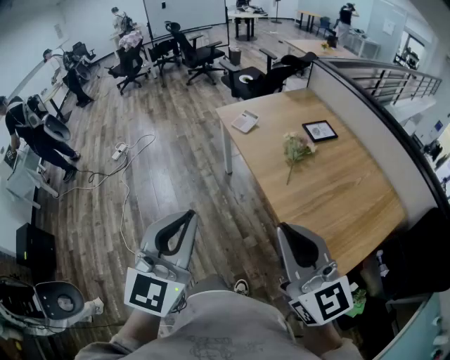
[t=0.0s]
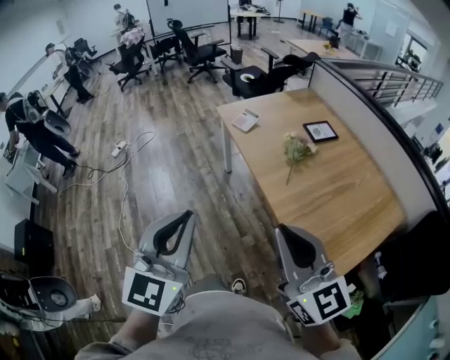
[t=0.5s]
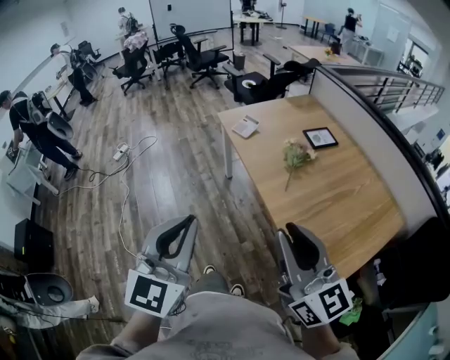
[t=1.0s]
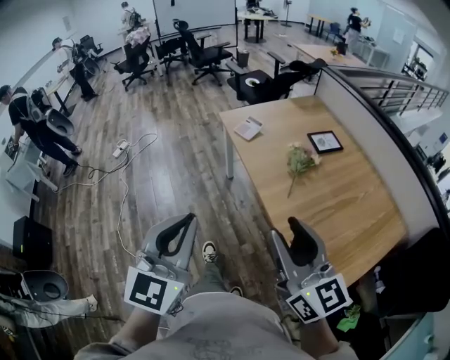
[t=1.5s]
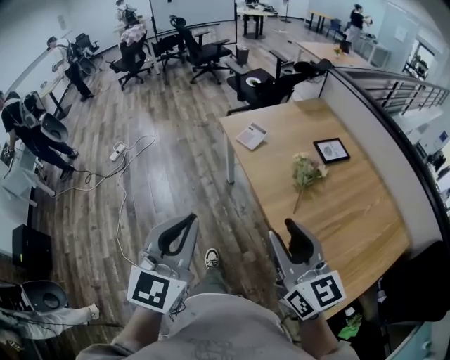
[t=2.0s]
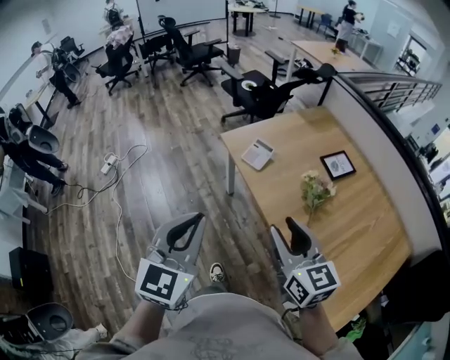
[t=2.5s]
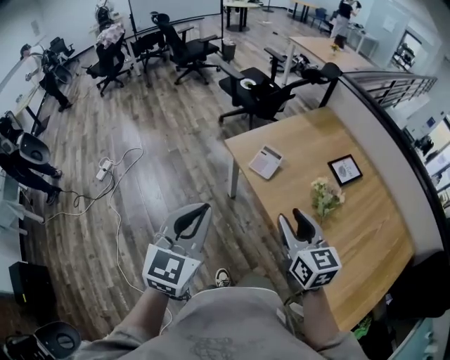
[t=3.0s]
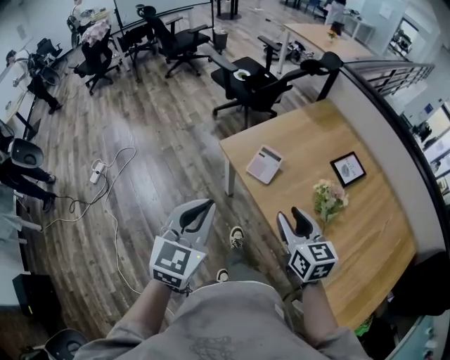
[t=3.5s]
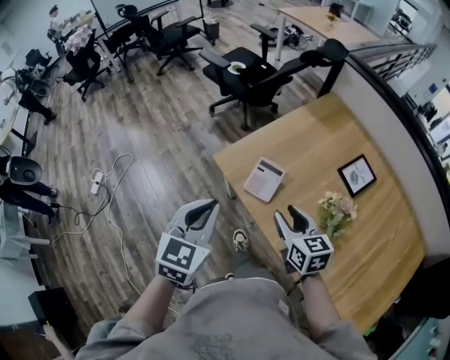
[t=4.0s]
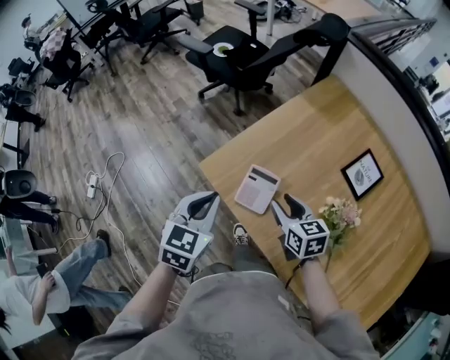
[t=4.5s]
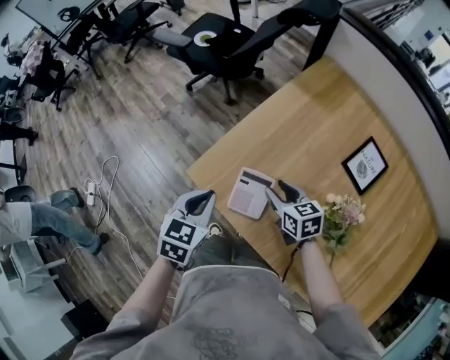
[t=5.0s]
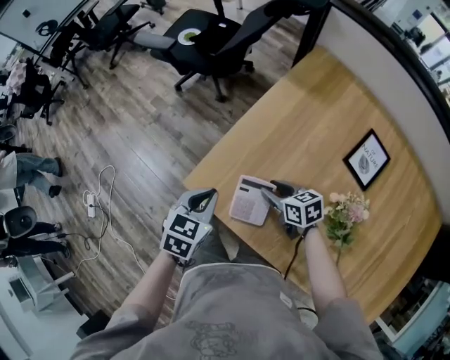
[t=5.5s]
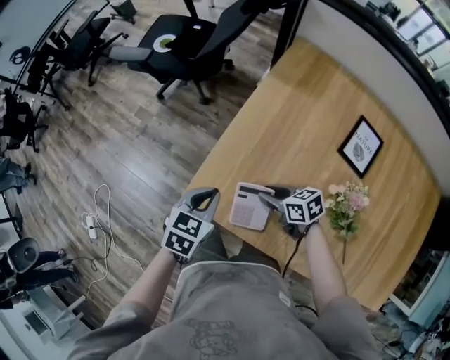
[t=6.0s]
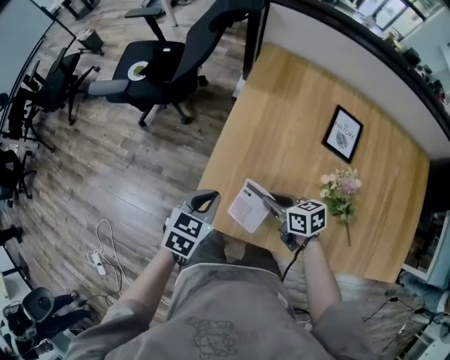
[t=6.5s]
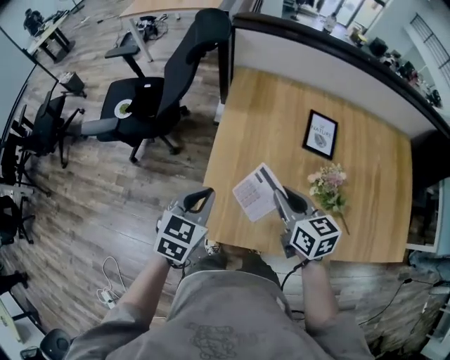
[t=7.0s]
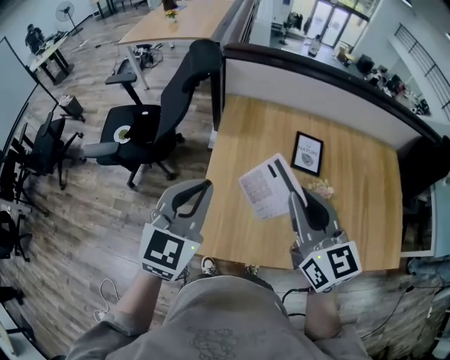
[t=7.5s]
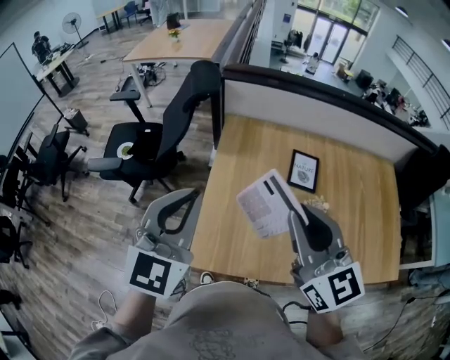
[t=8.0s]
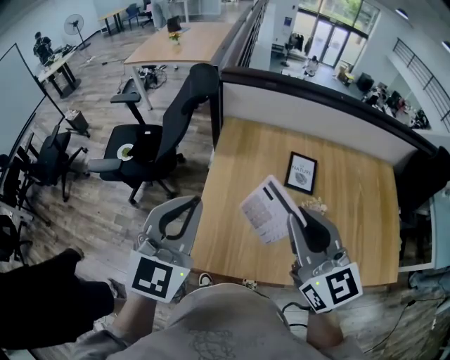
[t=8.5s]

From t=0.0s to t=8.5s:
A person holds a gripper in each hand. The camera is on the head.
From t=0.0s to t=2.0s: The grippers both shift forward by about 15 cm. The right gripper opens its fingers.
From t=2.0s to t=4.0s: Both grippers are carried forward, some 50 cm. The left gripper changes its angle by approximately 20 degrees. The right gripper shifts approximately 20 cm downward, and rotates approximately 30 degrees.
From t=4.0s to t=6.5s: Both grippers move forward and downward, some 30 cm. The right gripper swivels roughly 30 degrees, and closes up. The left gripper changes its angle by roughly 50 degrees.
From t=6.5s to t=8.5s: Both grippers travel together upward, some 35 cm. The left gripper tips its fingers upward by roughly 40 degrees; the right gripper angles its fingers upward, by about 30 degrees.

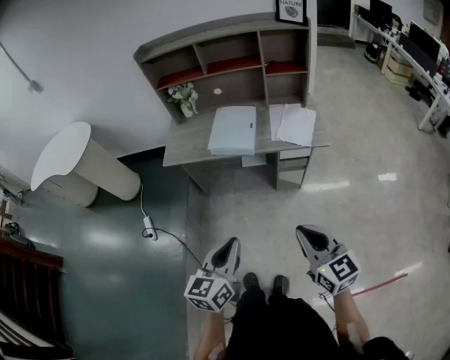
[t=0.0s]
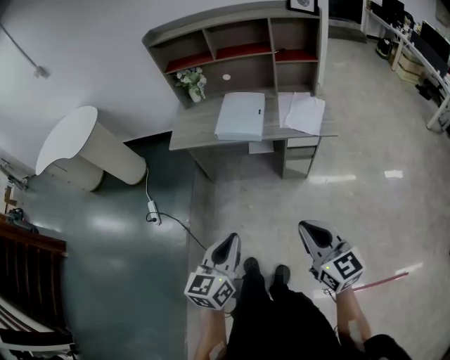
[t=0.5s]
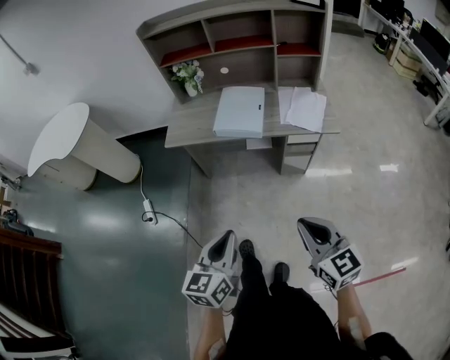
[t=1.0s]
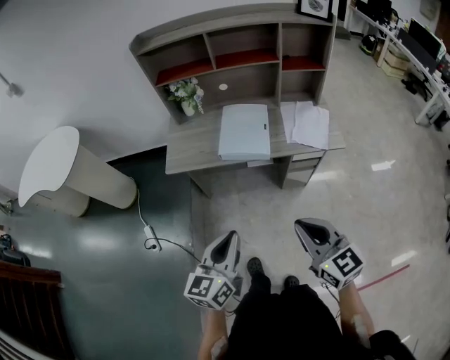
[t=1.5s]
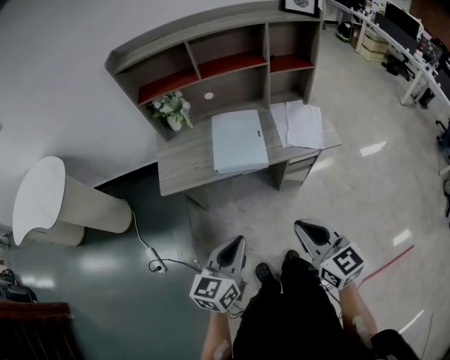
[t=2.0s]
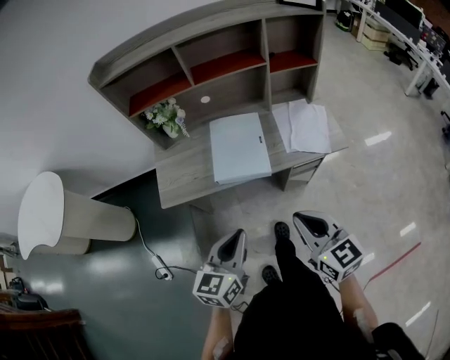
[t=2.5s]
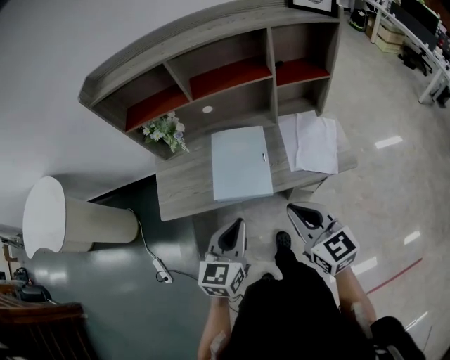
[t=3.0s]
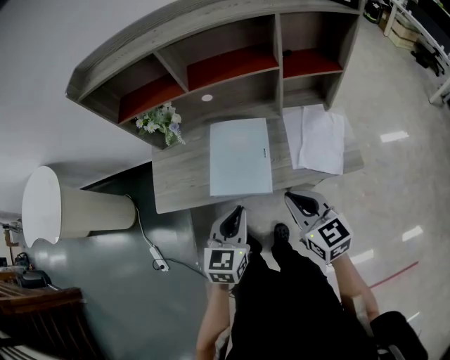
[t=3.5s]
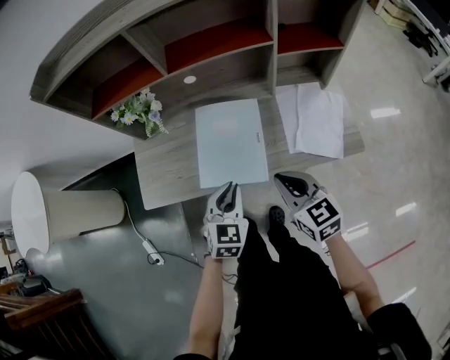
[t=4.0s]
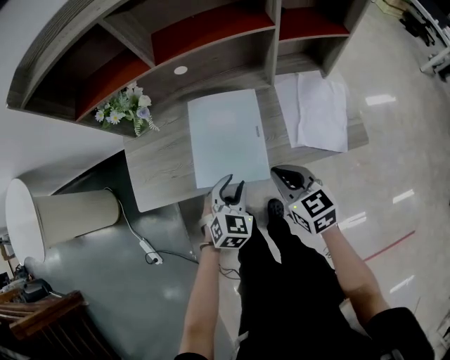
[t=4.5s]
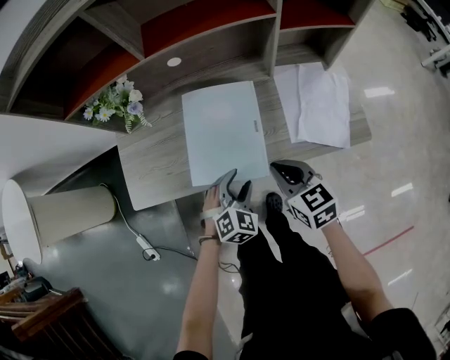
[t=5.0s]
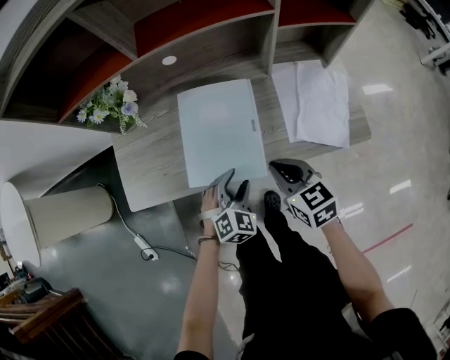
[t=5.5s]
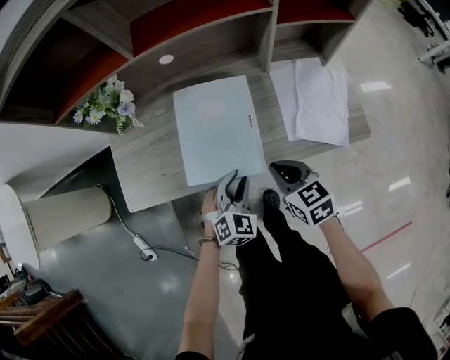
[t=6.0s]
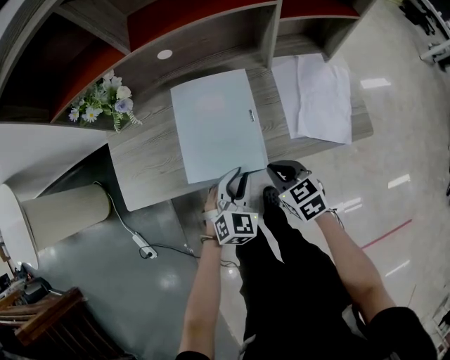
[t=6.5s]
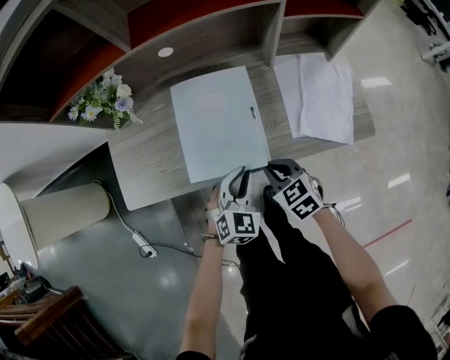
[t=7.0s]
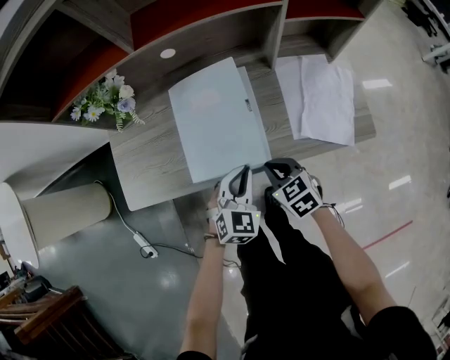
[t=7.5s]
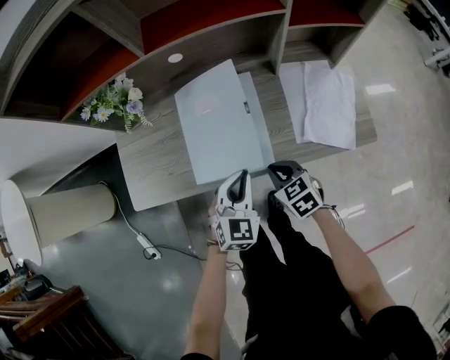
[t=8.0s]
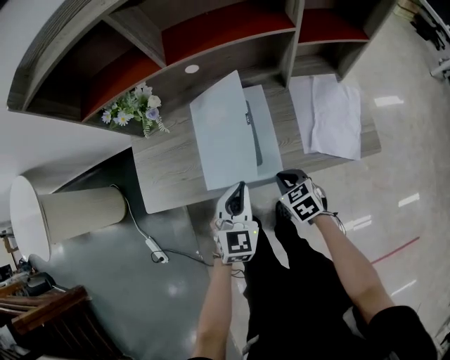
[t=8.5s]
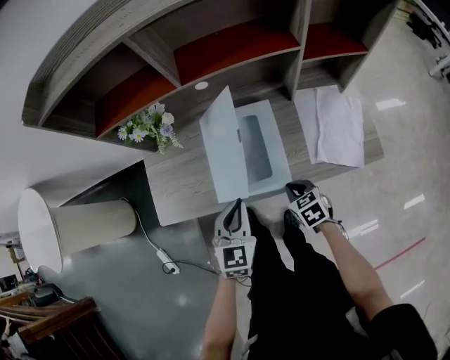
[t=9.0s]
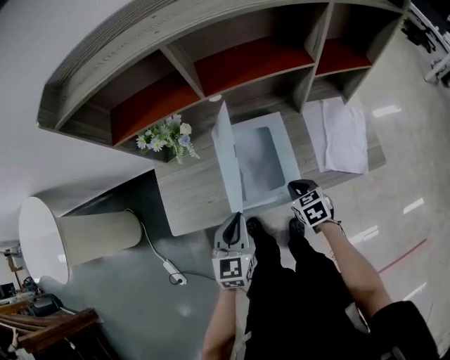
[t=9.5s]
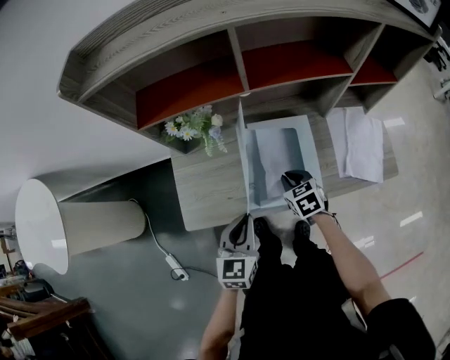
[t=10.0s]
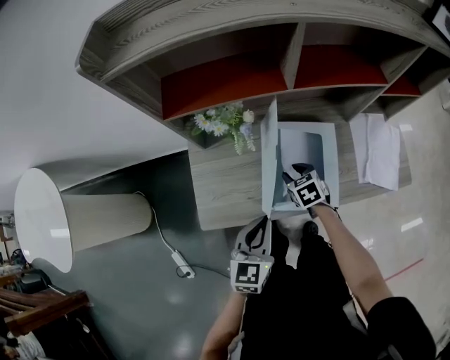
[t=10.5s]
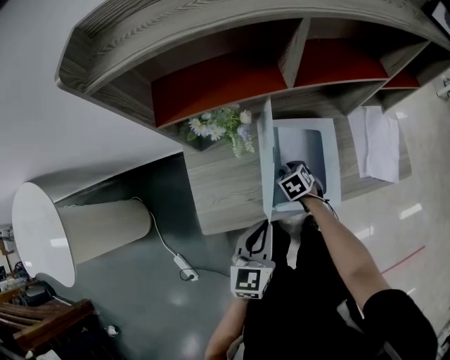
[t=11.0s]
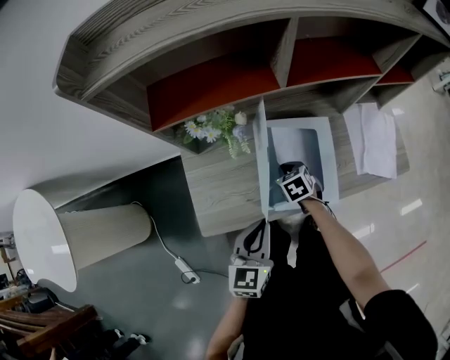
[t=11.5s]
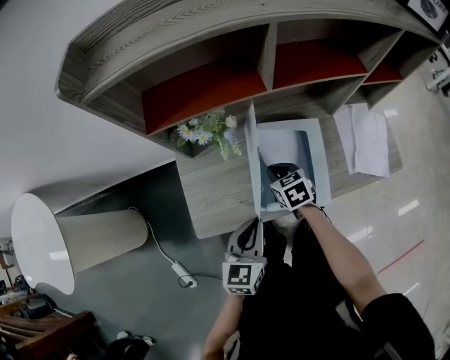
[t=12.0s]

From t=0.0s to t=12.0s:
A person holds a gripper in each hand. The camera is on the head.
From t=0.0s to t=2.0s: Both grippers move forward and to the left, some 20 cm.
From t=2.0s to t=4.0s: Both grippers travel together forward, approximately 30 cm. The left gripper changes its angle by roughly 30 degrees.
From t=4.0s to t=6.0s: Both grippers move downward, roughly 10 cm. The left gripper swivels roughly 20 degrees, and opens up.
From t=6.0s to t=8.0s: The right gripper travels downward by roughly 5 cm; the left gripper shifts by approximately 5 cm, and closes up.
From t=8.0s to t=10.0s: The right gripper goes about 15 cm forward and to the left. Meanwhile the left gripper is displaced to the left and upward by some 20 cm, and turns by some 30 degrees.
From t=10.0s to t=12.0s: The right gripper moves to the left, about 10 cm, reaches approximately 10 cm downward, then returns, and opens, then closes once more.

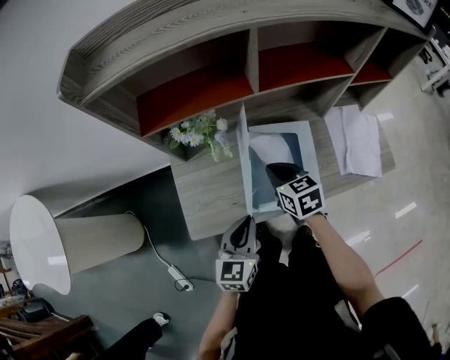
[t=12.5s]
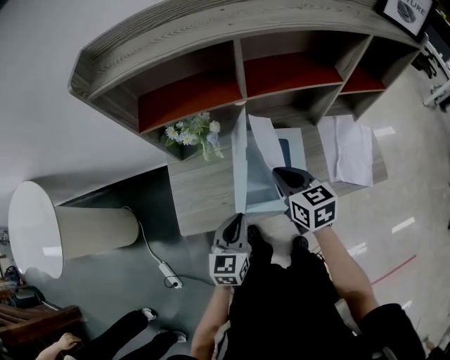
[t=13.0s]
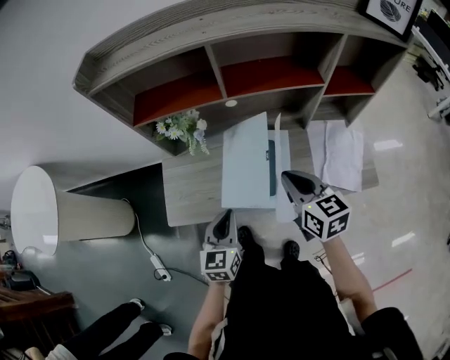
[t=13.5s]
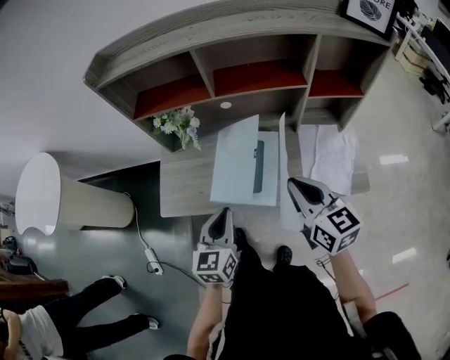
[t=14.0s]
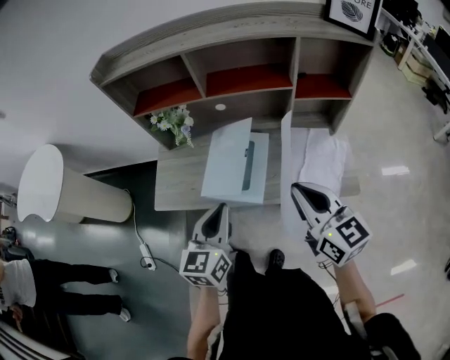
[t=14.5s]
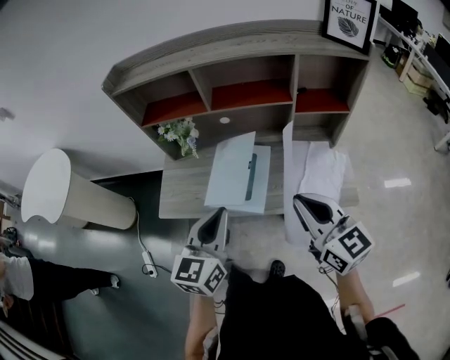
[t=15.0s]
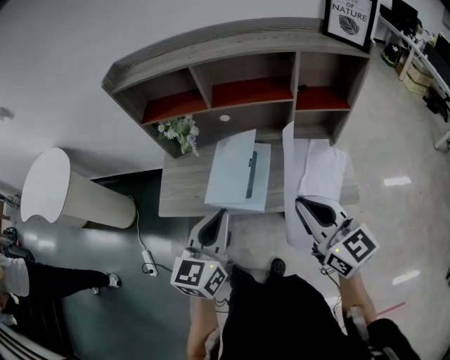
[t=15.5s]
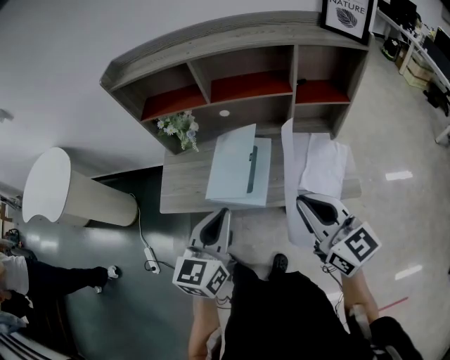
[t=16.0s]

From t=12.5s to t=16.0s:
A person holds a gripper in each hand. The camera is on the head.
From t=12.5s to t=14.5s: The right gripper heads to the right, backward and upward, covering roughly 40 cm, and angles its fingers upward, by some 30 degrees; the left gripper heads to the right, upward and backward, covering roughly 25 cm.
From t=14.5s to t=16.0s: The right gripper changes place by roughly 5 cm; the left gripper goes some 5 cm upward.

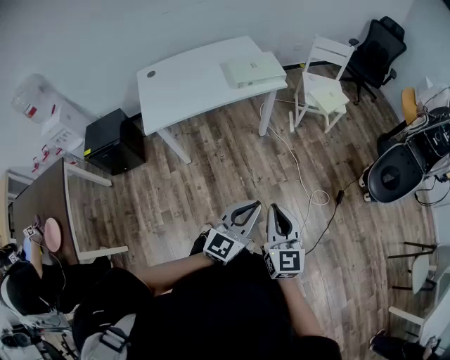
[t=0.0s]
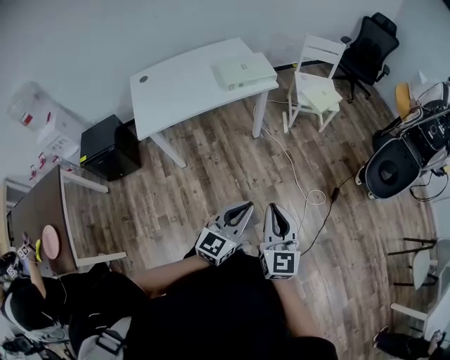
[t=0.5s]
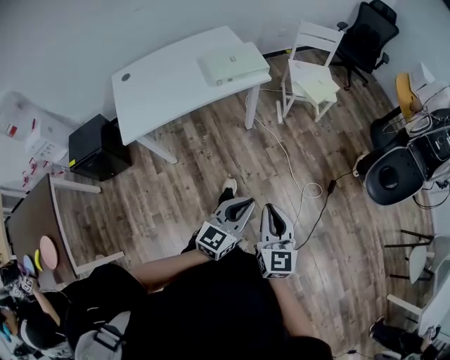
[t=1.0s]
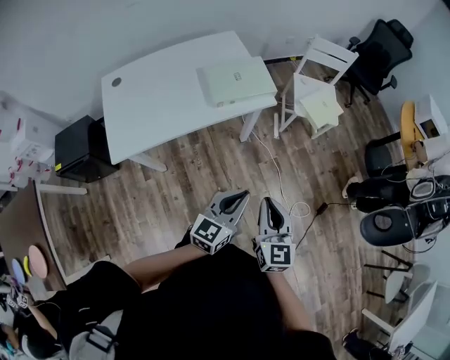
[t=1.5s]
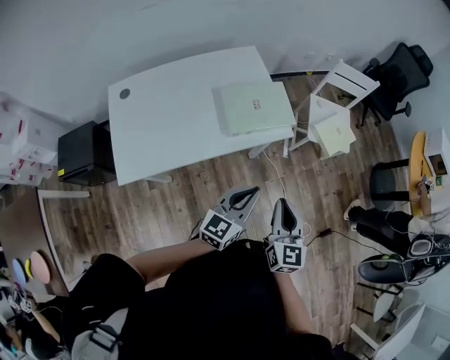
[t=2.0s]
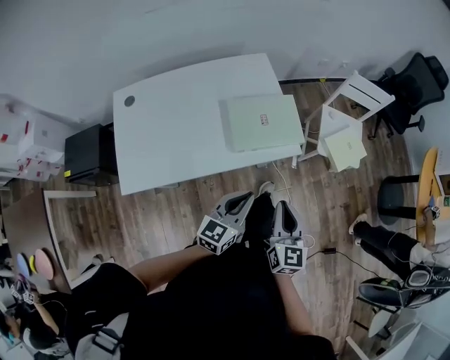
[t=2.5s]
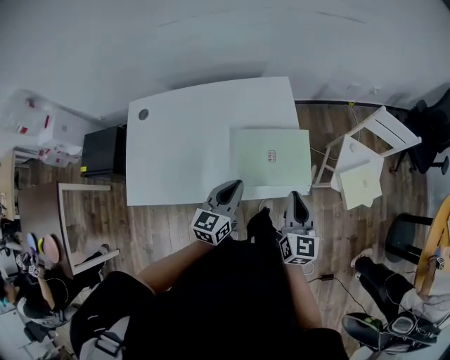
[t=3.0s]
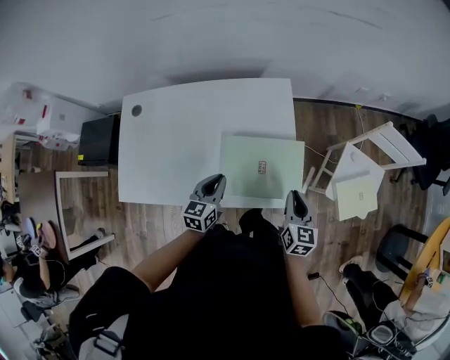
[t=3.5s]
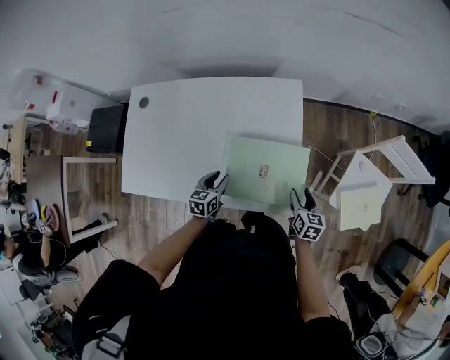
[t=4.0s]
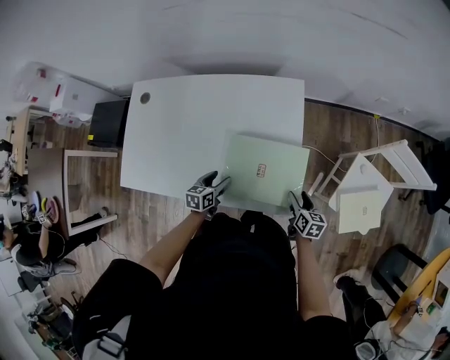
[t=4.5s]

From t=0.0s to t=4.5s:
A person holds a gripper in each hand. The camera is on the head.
From t=0.0s to t=2.0s: The two grippers travel together, forward, about 40 cm.
From t=2.0s to t=4.5s: The right gripper shifts by roughly 50 cm, swivels approximately 50 degrees, and opens. The left gripper changes place by roughly 40 cm, tilts its fingers some 30 degrees downward, and opens up.
